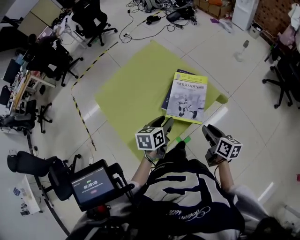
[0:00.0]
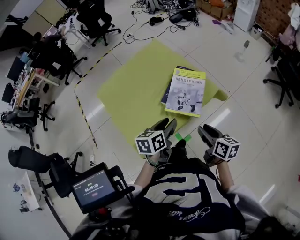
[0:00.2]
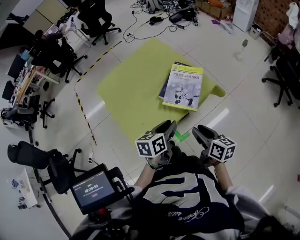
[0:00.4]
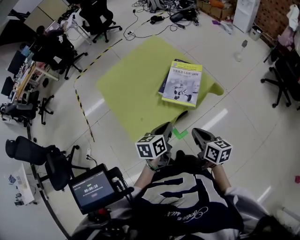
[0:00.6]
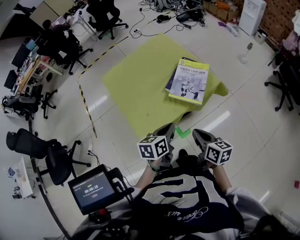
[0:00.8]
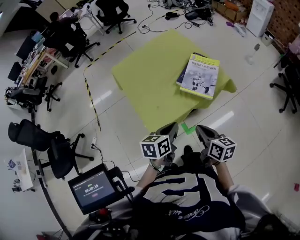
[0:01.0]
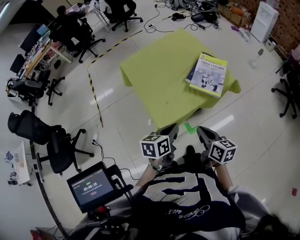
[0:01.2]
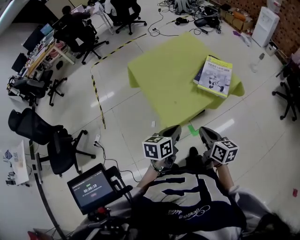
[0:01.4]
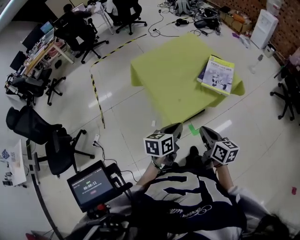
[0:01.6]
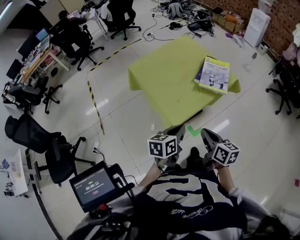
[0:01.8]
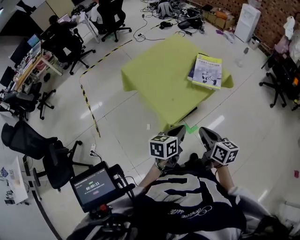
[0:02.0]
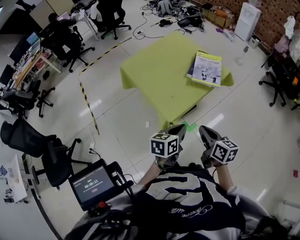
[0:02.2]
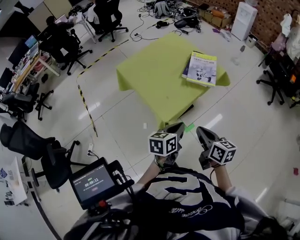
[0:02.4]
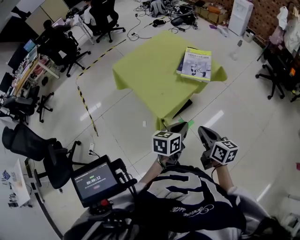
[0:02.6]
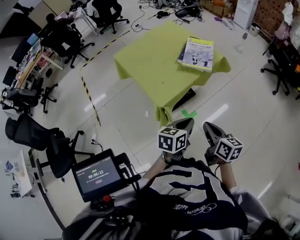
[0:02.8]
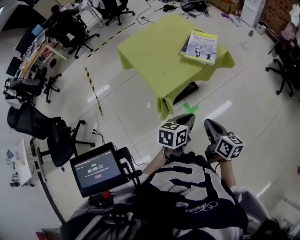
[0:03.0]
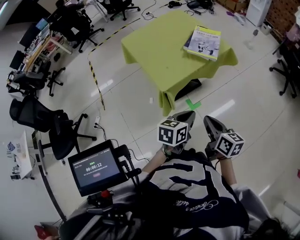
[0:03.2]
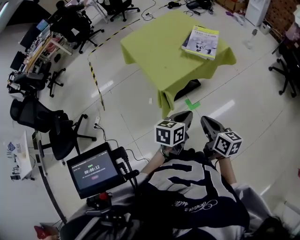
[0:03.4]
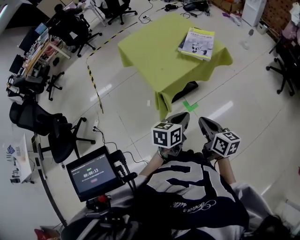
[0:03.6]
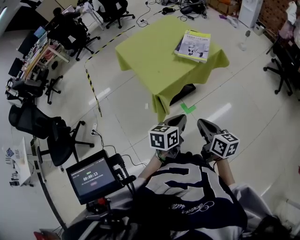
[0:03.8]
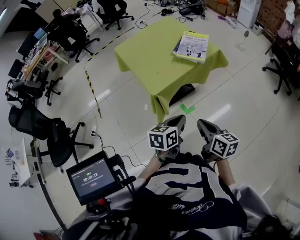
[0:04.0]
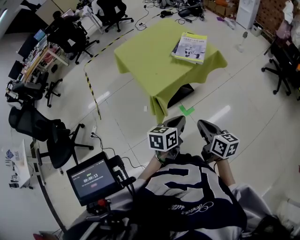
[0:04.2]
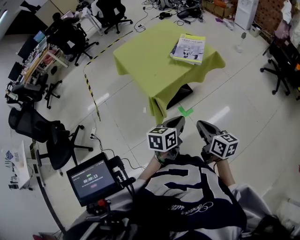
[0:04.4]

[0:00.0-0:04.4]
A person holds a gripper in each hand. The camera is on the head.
0:00.0 to 0:01.4: Both grippers move backward and to the left, roughly 35 cm. The right gripper closes, while the left gripper closes its fingers.
0:01.4 to 0:03.0: The grippers both shift backward and to the right by approximately 20 cm.
0:03.0 to 0:04.4: The right gripper shifts by roughly 5 cm.

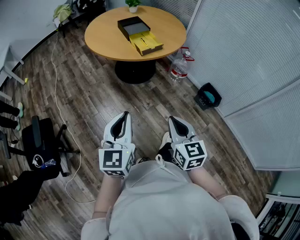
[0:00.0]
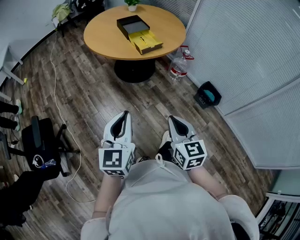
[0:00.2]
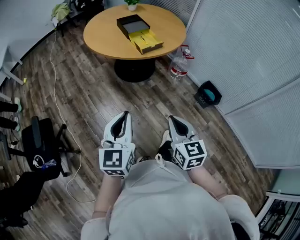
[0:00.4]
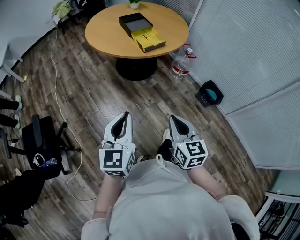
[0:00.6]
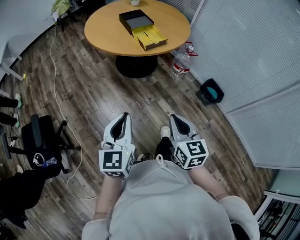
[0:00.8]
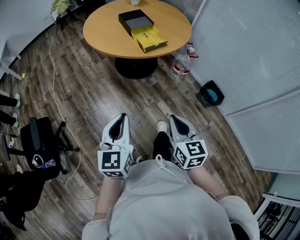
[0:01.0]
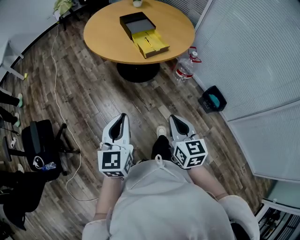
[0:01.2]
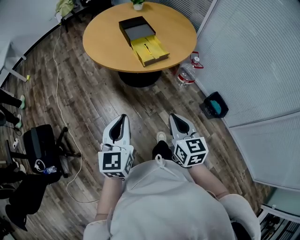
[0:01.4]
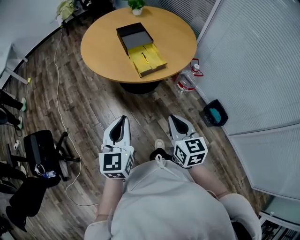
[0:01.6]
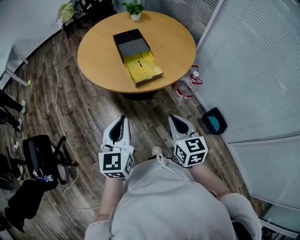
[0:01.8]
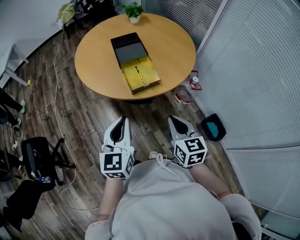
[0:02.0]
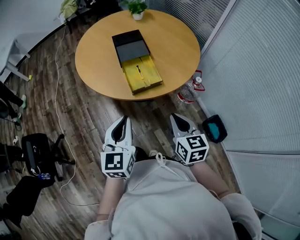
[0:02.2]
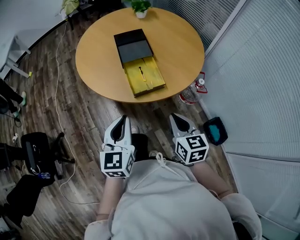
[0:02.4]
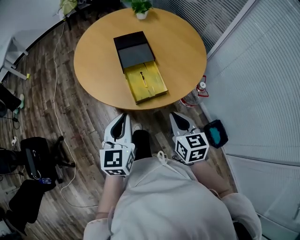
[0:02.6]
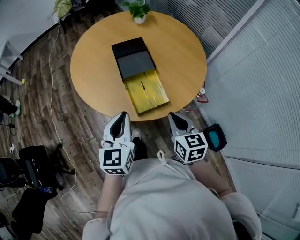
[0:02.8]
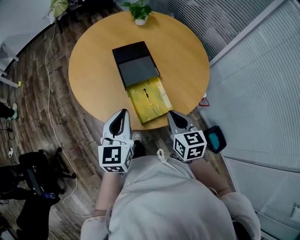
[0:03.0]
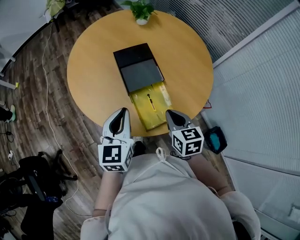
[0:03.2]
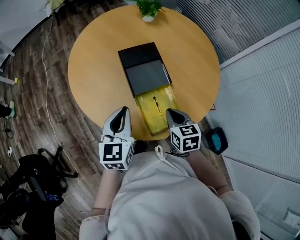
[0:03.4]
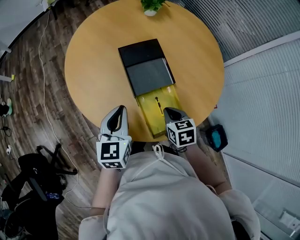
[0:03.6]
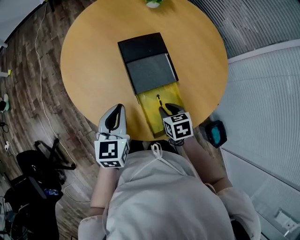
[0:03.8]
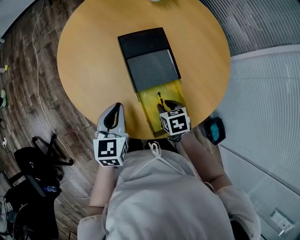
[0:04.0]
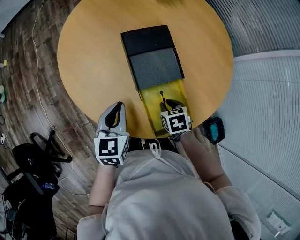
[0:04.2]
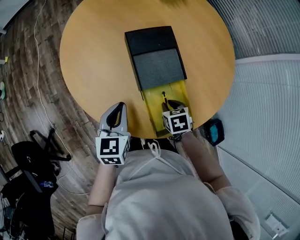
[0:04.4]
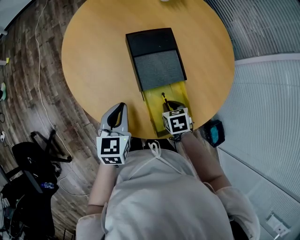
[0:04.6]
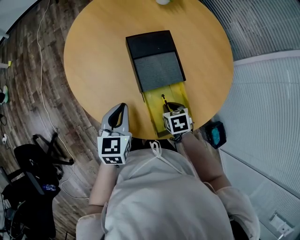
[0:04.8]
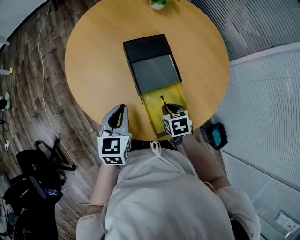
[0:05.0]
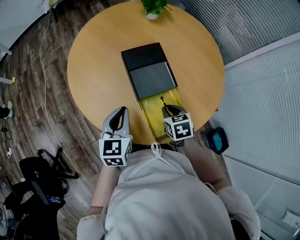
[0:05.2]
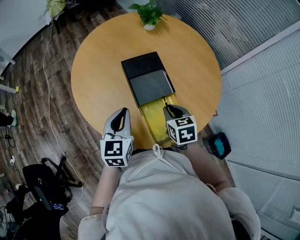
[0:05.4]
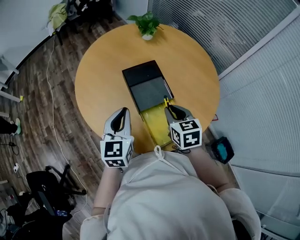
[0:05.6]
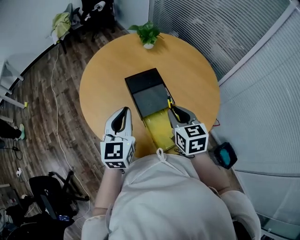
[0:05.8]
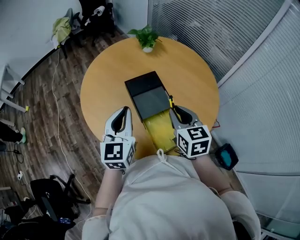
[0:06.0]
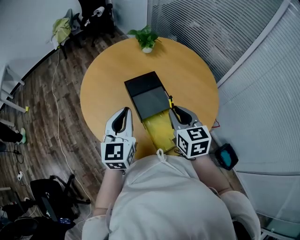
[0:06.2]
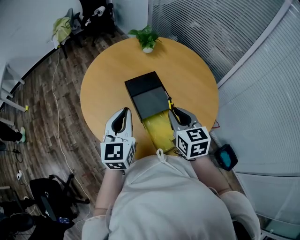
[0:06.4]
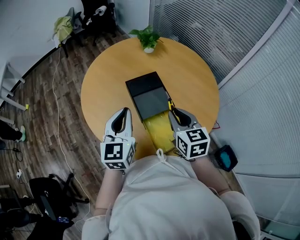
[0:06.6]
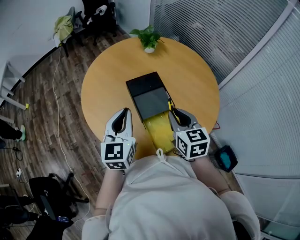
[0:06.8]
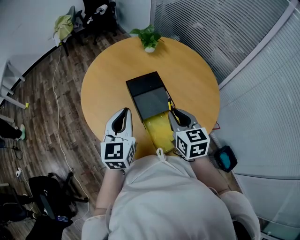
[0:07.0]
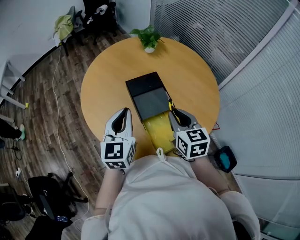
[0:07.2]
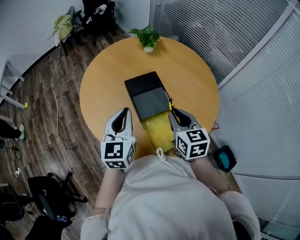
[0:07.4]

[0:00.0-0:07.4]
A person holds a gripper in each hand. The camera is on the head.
0:00.0 to 0:01.4: Both grippers move forward, some 20 cm.
0:01.4 to 0:03.0: Both grippers are carried forward, approximately 40 cm.
0:03.0 to 0:04.4: The left gripper goes about 25 cm downward, forward and to the left. Meanwhile the right gripper shifts approximately 25 cm downward and forward, tips its fingers downward by about 40 degrees, and opens up.
0:04.4 to 0:06.0: Both grippers travel together upward, about 25 cm. The right gripper tilts its fingers roughly 40 degrees upward. Meanwhile the left gripper turns by roughly 30 degrees.
0:06.0 to 0:07.4: Neither gripper changes place.

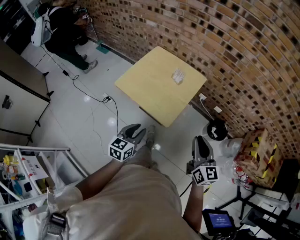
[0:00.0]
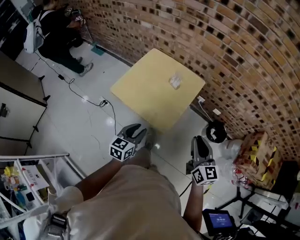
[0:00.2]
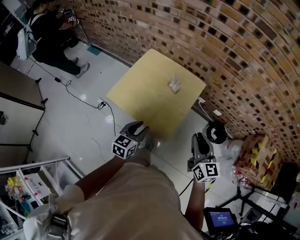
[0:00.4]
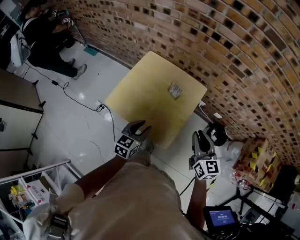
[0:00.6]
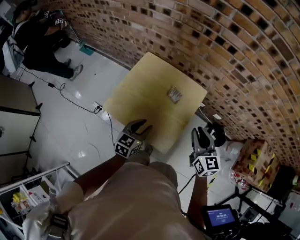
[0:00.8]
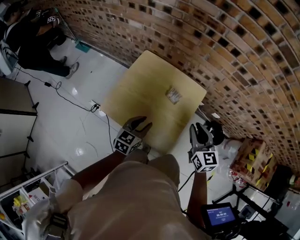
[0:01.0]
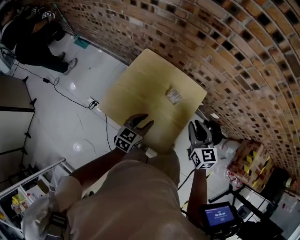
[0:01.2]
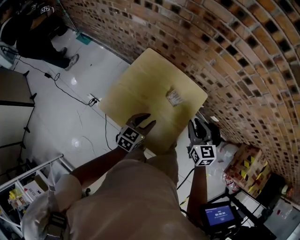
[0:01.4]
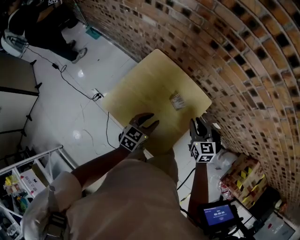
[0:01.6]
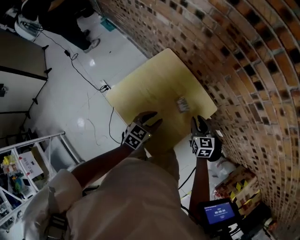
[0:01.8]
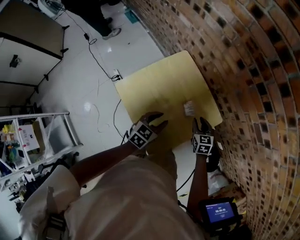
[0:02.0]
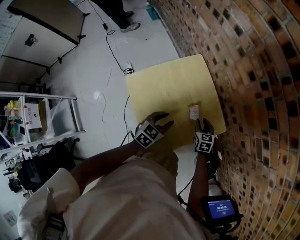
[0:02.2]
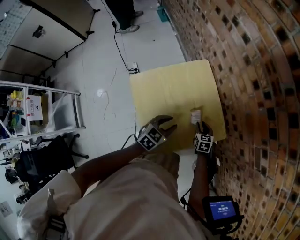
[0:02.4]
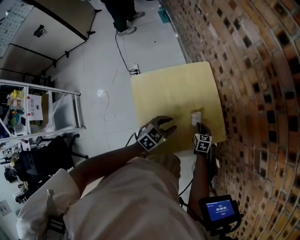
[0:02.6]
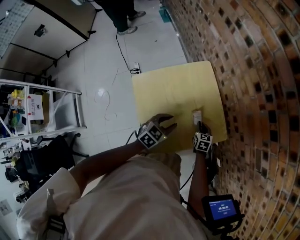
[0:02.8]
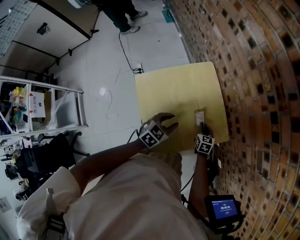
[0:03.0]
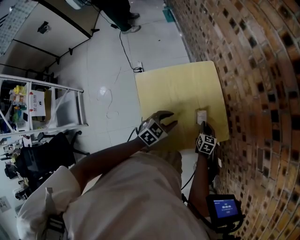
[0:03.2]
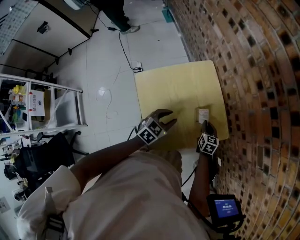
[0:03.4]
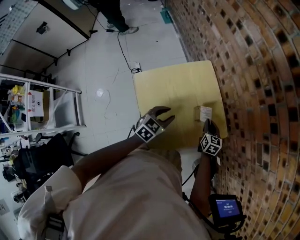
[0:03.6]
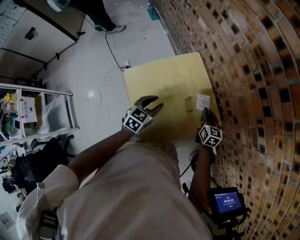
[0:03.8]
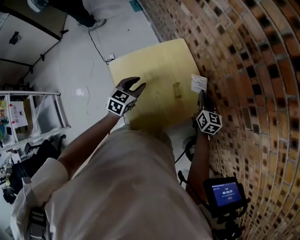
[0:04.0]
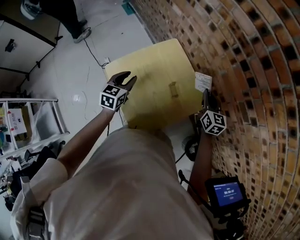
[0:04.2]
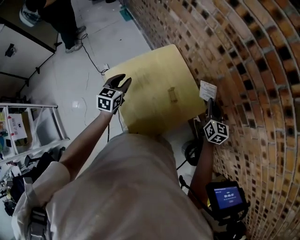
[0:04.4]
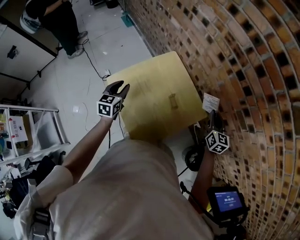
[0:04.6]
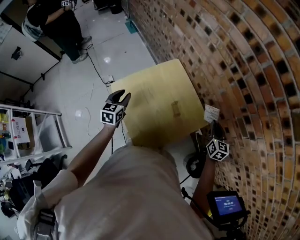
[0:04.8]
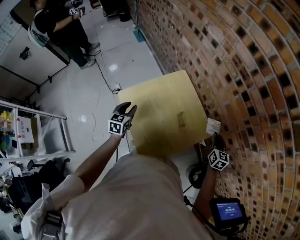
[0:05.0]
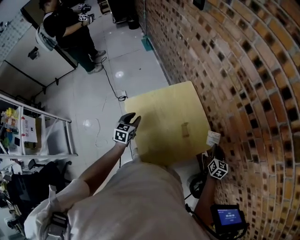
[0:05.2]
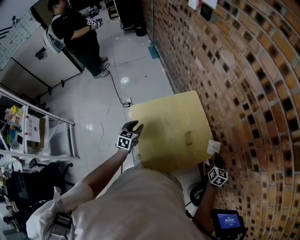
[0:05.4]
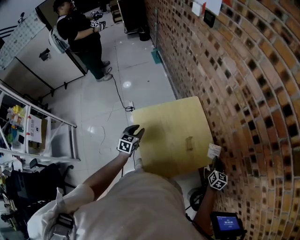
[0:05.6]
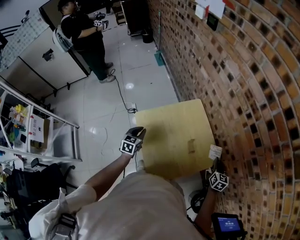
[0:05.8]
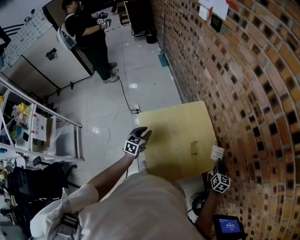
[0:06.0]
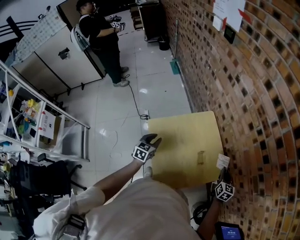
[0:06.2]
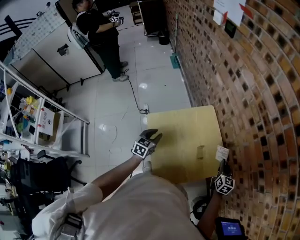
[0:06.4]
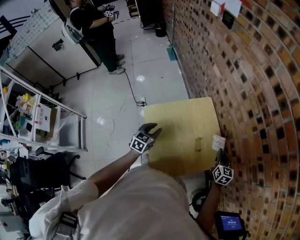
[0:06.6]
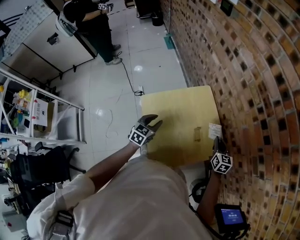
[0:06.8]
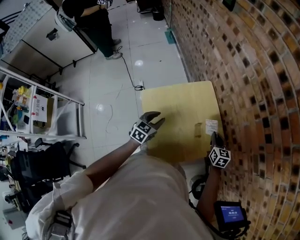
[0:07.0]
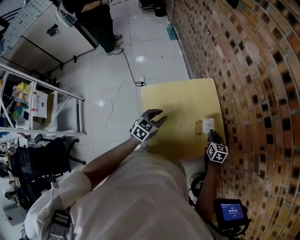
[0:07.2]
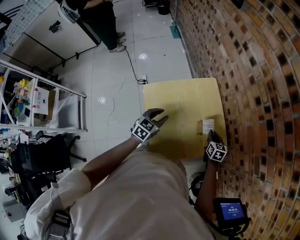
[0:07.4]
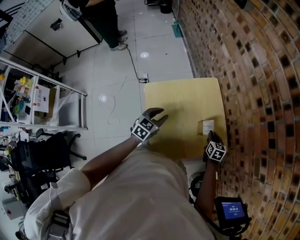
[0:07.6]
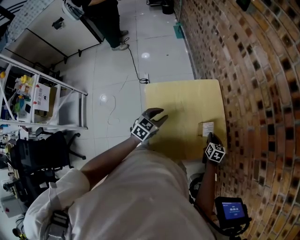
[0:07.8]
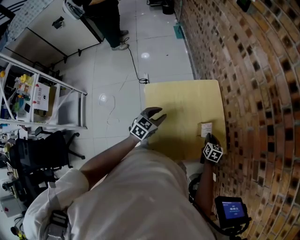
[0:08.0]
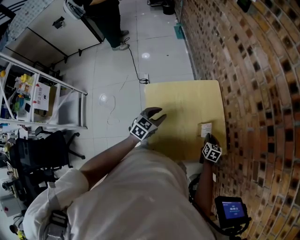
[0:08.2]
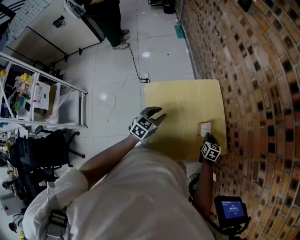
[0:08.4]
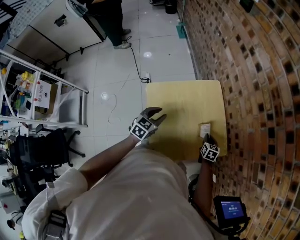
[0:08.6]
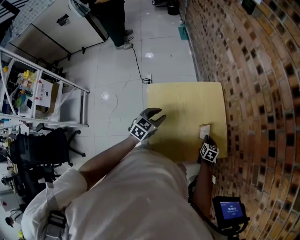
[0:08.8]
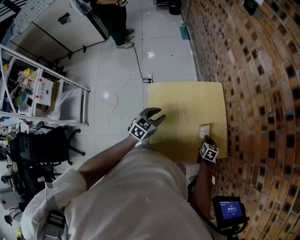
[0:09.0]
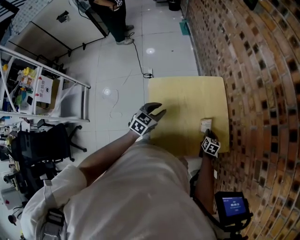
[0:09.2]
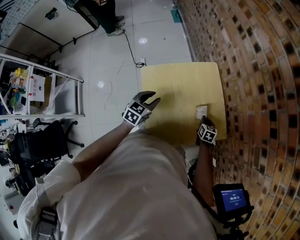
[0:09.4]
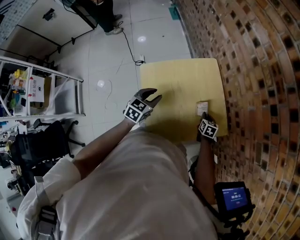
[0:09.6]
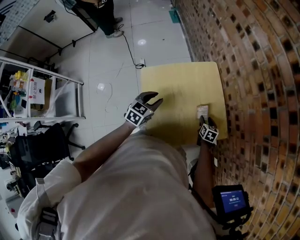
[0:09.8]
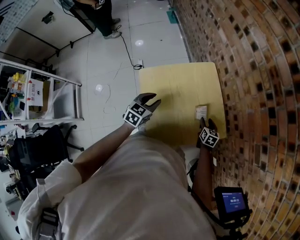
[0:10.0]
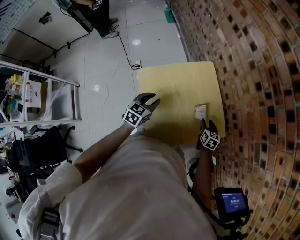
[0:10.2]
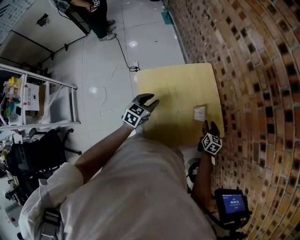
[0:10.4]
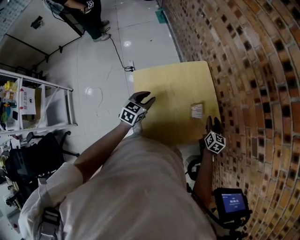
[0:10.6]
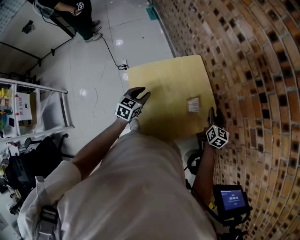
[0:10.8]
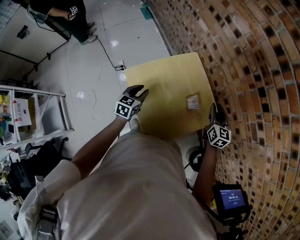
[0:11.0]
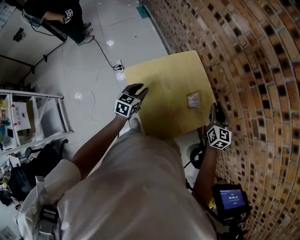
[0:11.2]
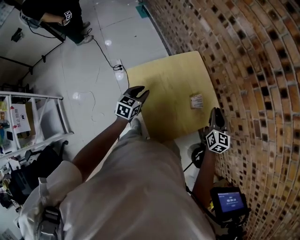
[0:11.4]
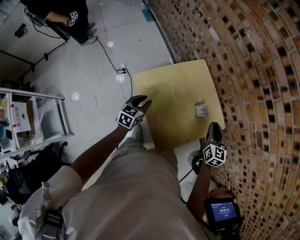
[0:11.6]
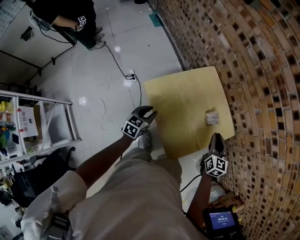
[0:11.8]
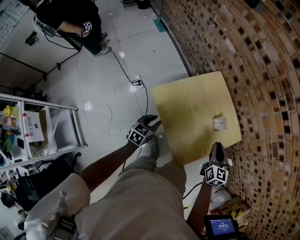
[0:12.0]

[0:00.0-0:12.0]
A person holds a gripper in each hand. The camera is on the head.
0:00.0 to 0:01.6: Both grippers move forward, approximately 40 cm. The right gripper rotates some 30 degrees.
0:01.6 to 0:03.0: The left gripper swivels about 20 degrees. The right gripper moves downward, roughly 20 cm, and turns by some 30 degrees.
0:03.0 to 0:04.4: The right gripper moves upward and to the right, about 30 cm, and swivels about 30 degrees. Meanwhile the left gripper heads to the left and upward, covering approximately 15 cm, and turns by some 20 degrees.
0:04.4 to 0:06.0: The left gripper travels to the left and downward by roughly 10 cm. The right gripper goes approximately 10 cm downward.
0:06.0 to 0:07.6: The right gripper moves downward and to the left, approximately 15 cm, and changes its angle by some 20 degrees; the left gripper shifts some 10 cm to the right.
0:07.6 to 0:09.0: The right gripper heads downward, covering roughly 5 cm.
0:09.0 to 0:10.4: The right gripper is displaced upward by some 10 cm, and opens its fingers.
0:10.4 to 0:12.0: The left gripper heads to the left, backward and downward, covering about 15 cm, while the right gripper is displaced upward, to the left and backward by some 25 cm, and closes its fingers.
